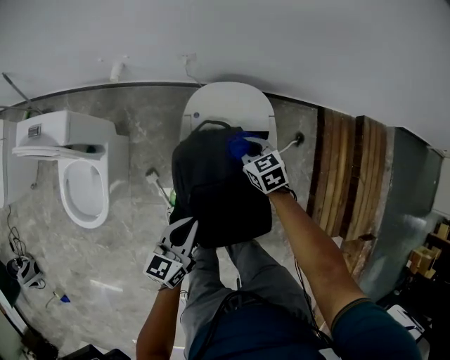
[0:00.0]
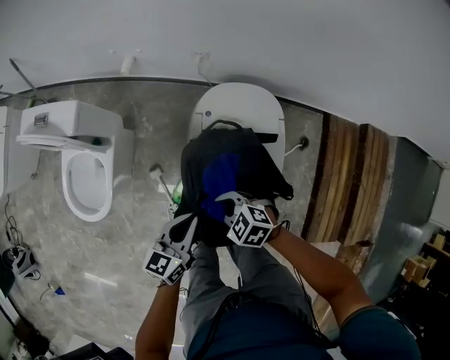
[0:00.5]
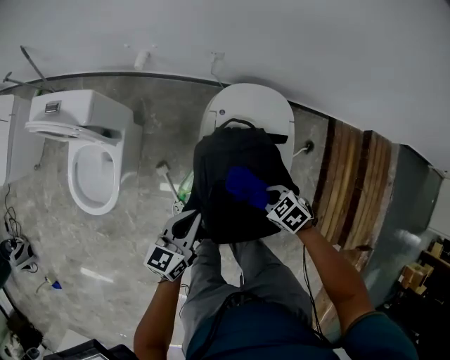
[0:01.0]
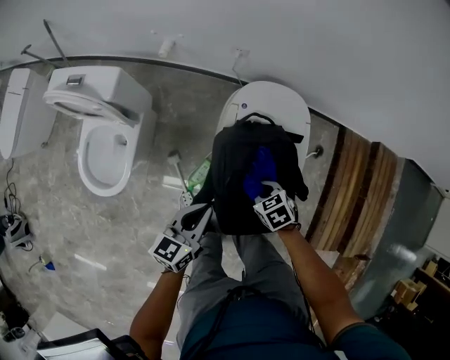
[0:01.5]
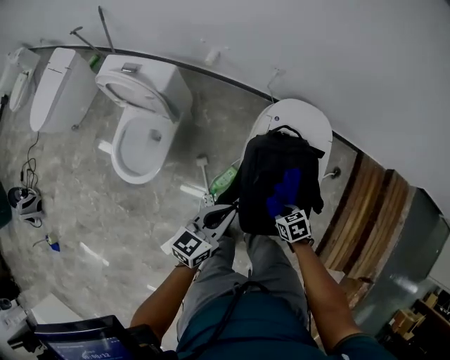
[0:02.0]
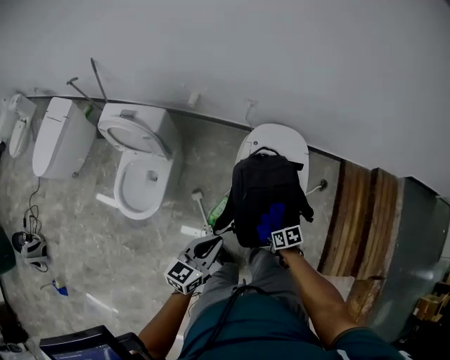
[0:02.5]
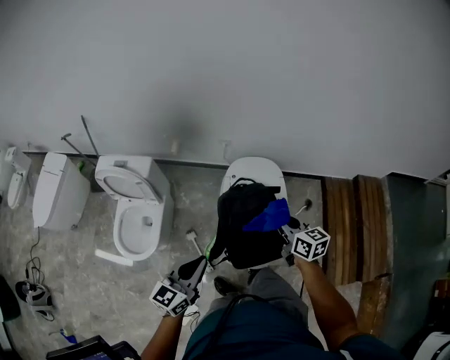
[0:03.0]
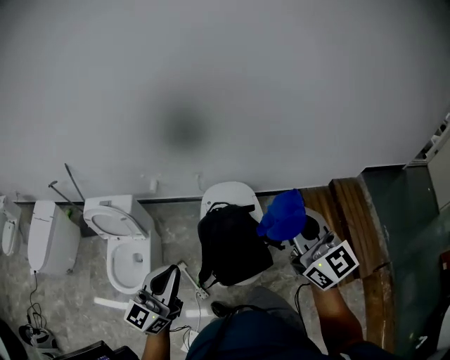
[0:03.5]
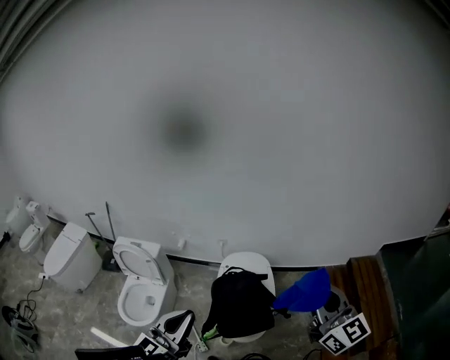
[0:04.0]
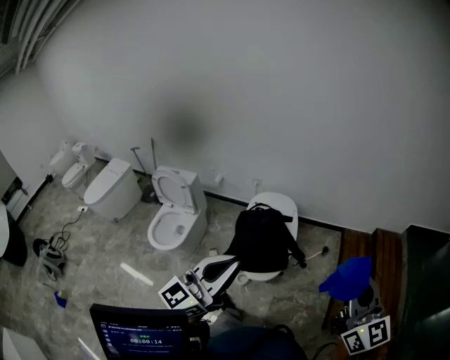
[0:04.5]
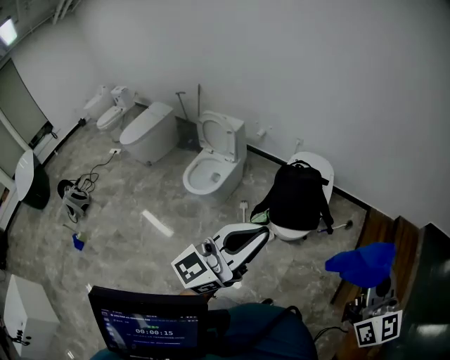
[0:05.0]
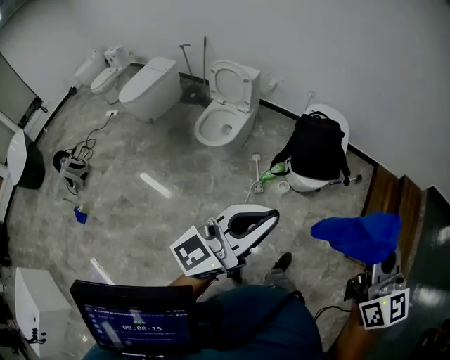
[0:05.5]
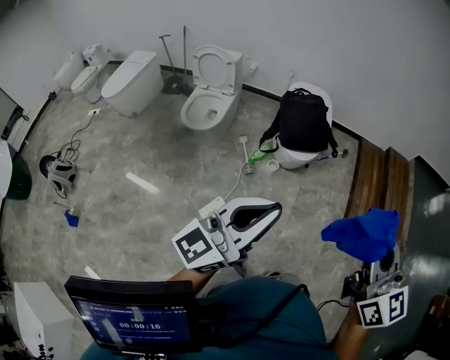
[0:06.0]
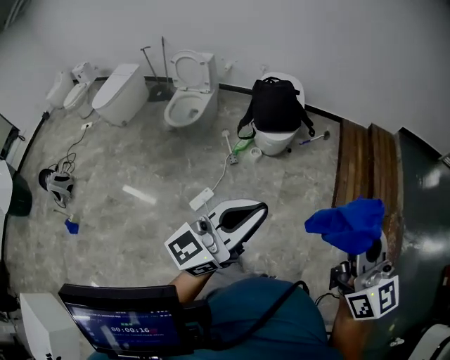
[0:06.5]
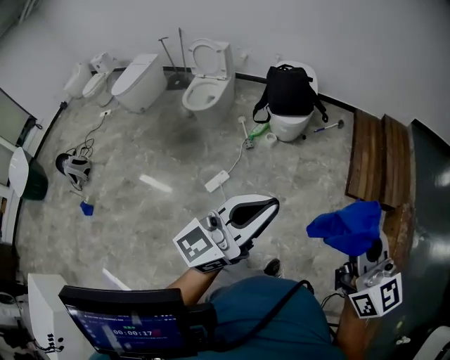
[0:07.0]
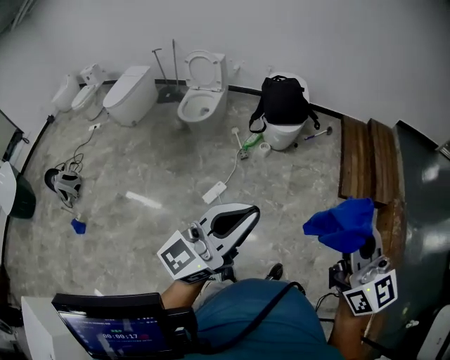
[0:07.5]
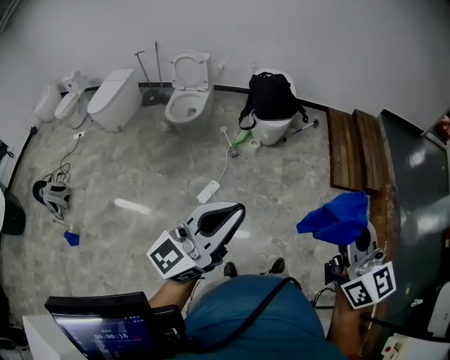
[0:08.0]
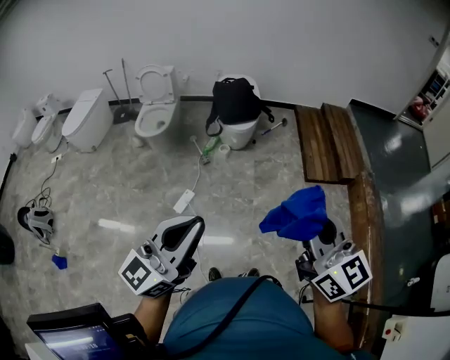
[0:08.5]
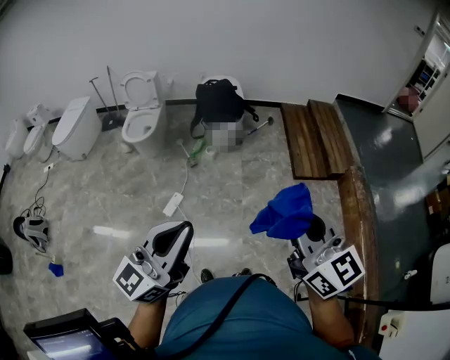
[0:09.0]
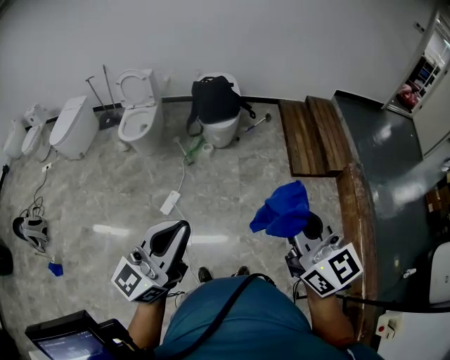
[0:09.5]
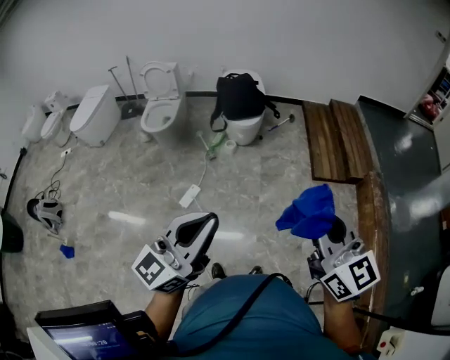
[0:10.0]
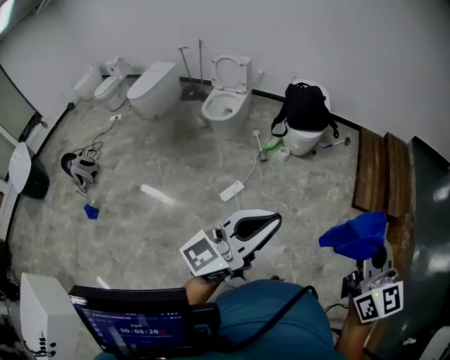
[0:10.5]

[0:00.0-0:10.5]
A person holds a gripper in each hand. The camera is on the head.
0:00.0 to 0:02.0: The right gripper ends up approximately 25 cm from where it was, and rotates roughly 20 degrees, while the left gripper shifts by approximately 10 cm.
0:02.0 to 0:04.0: The right gripper heads upward, covering some 60 cm, and tilts its fingers about 70 degrees upward; the left gripper moves upward, roughly 35 cm, and points its fingers roughly 30 degrees further upward.
0:04.0 to 0:06.5: The two grippers travel together, backward, approximately 60 cm.
0:06.5 to 0:08.5: Both grippers travel together backward, some 25 cm.
0:08.5 to 0:10.5: The left gripper ends up roughly 5 cm from where it was.

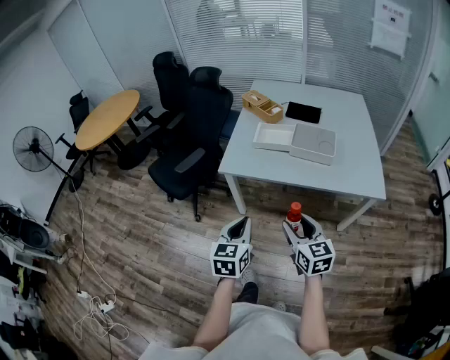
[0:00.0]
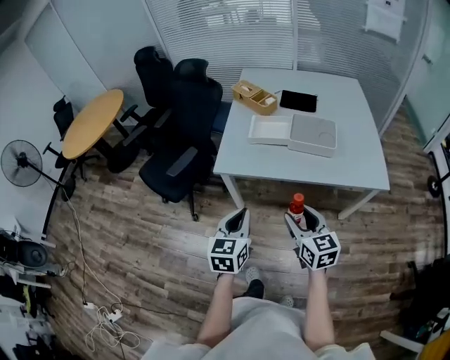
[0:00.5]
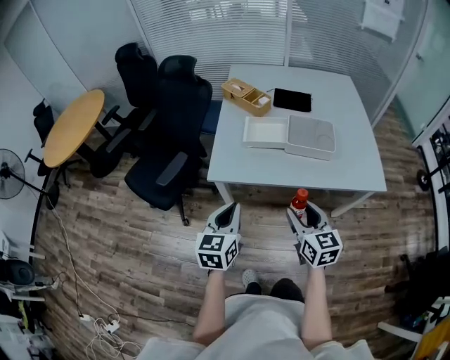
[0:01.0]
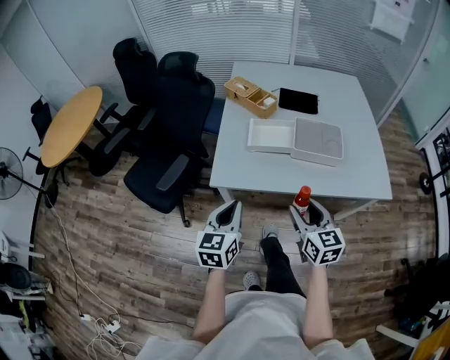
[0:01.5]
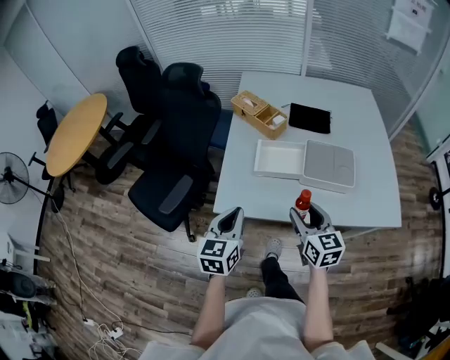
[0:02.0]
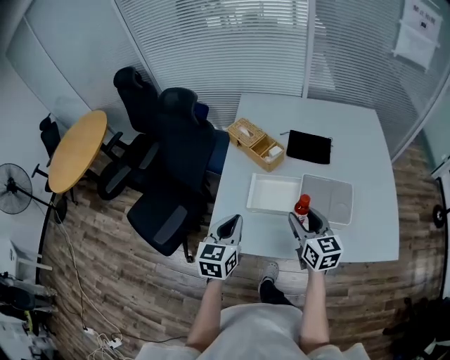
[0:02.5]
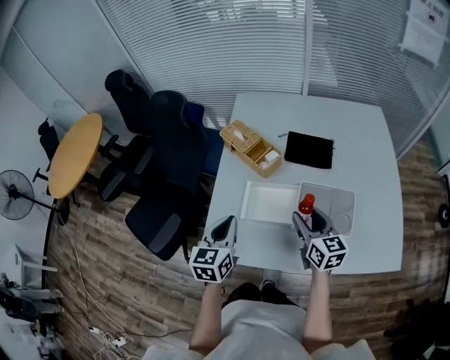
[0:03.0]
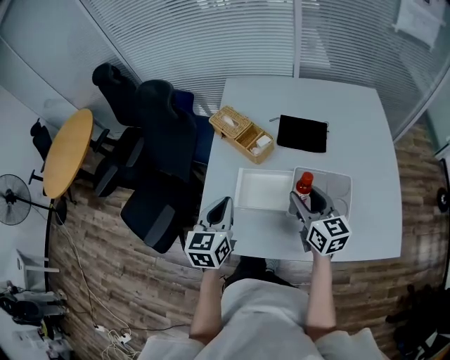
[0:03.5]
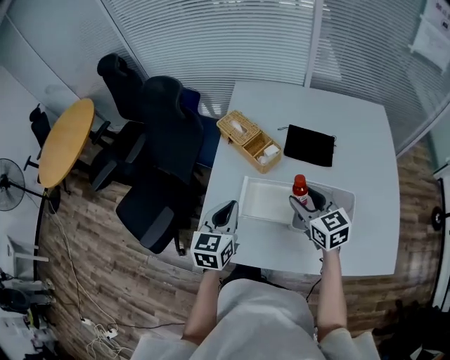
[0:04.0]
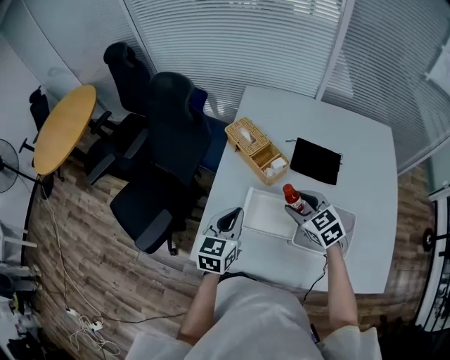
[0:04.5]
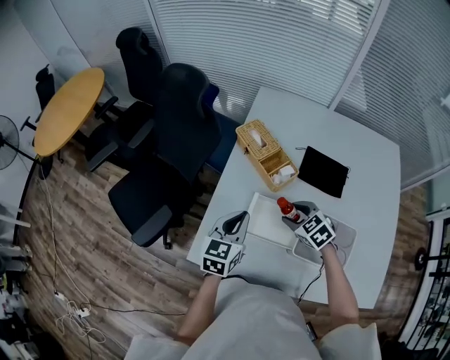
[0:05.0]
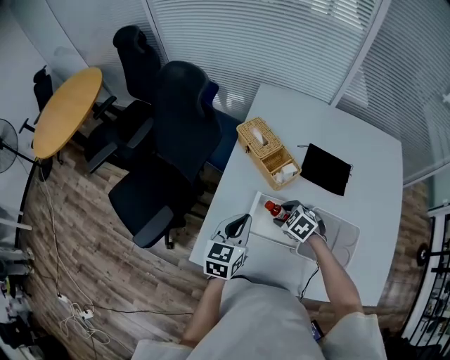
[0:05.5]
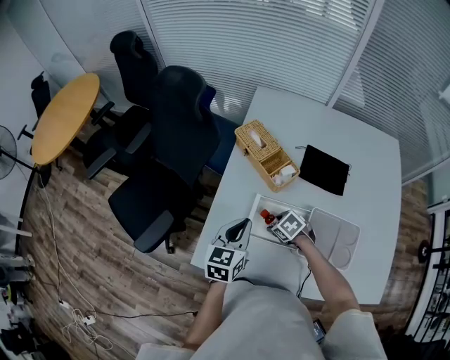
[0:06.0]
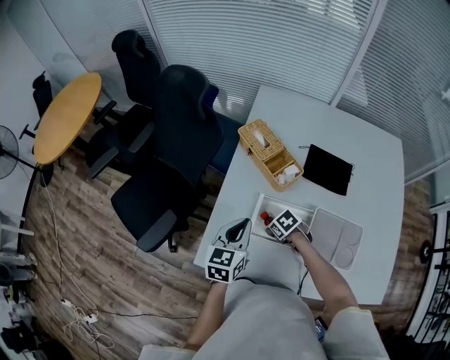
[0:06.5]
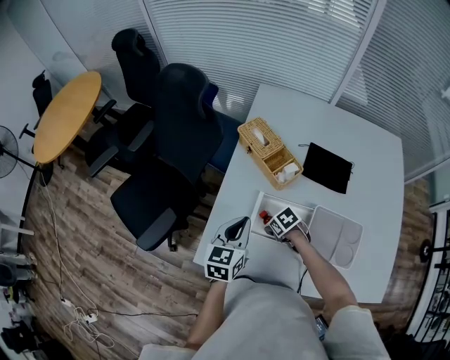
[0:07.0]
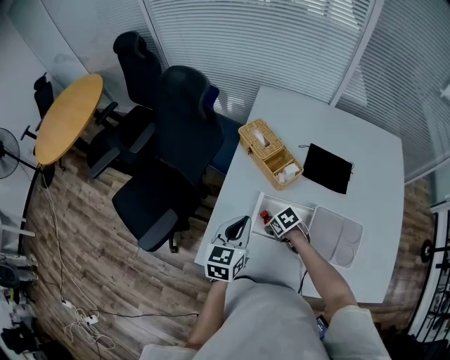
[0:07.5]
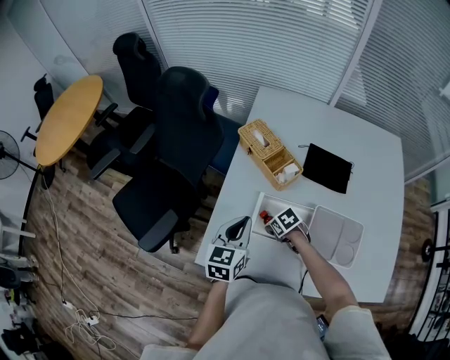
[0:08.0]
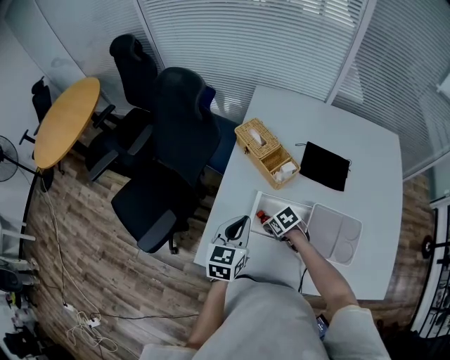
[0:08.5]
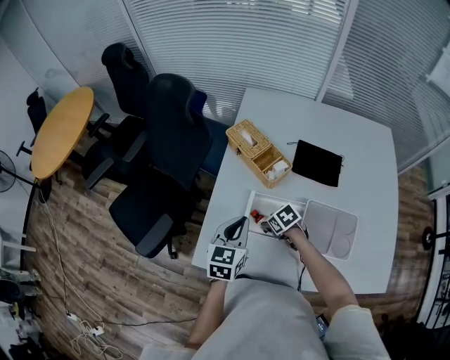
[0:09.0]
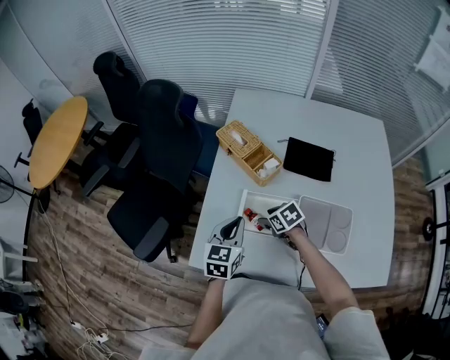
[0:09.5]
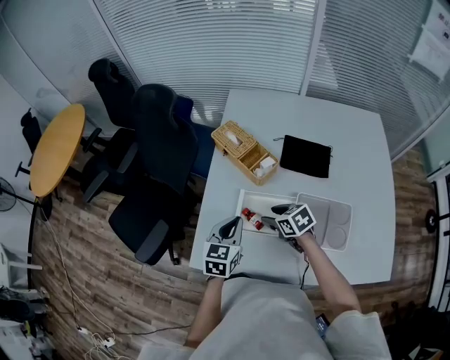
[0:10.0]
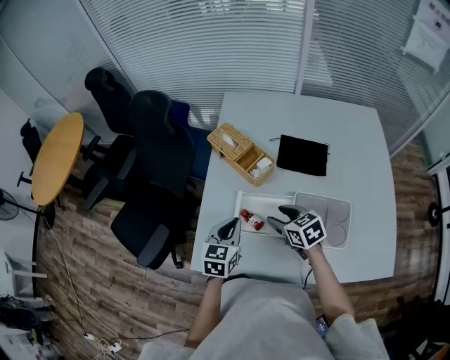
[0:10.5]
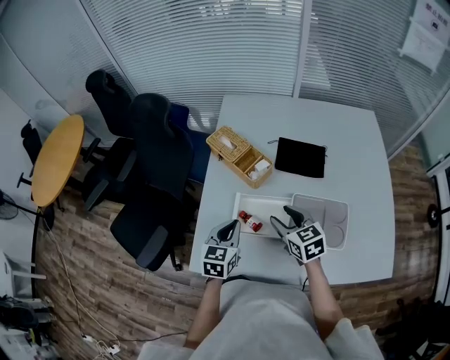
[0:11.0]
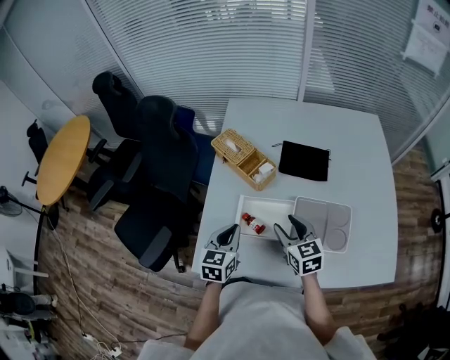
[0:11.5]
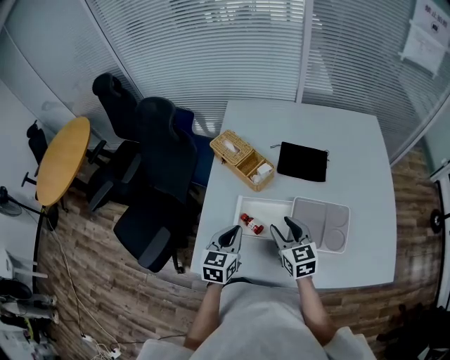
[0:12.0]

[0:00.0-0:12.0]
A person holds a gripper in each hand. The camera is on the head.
0:00.0 to 0:02.0: Both grippers move forward, roughly 30 cm.
0:02.0 to 0:04.0: Both grippers move forward, about 25 cm.
0:04.0 to 0:06.0: The right gripper shifts some 25 cm downward and to the left, and angles its fingers downward, by some 40 degrees; the left gripper moves downward, about 5 cm.
0:06.0 to 0:08.0: There are only small adjustments of the grippers.
0:08.0 to 0:10.0: The right gripper shifts approximately 10 cm upward, and rotates roughly 20 degrees.
0:10.0 to 0:12.0: The right gripper shifts approximately 10 cm upward, and changes its angle by some 40 degrees.

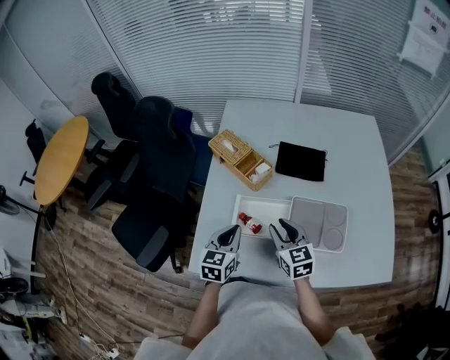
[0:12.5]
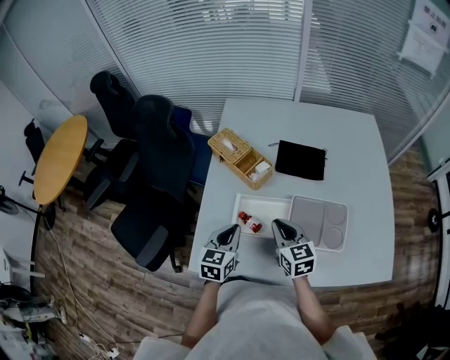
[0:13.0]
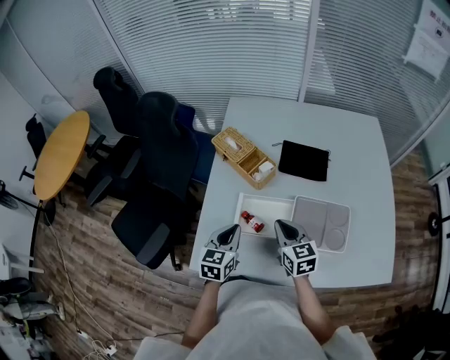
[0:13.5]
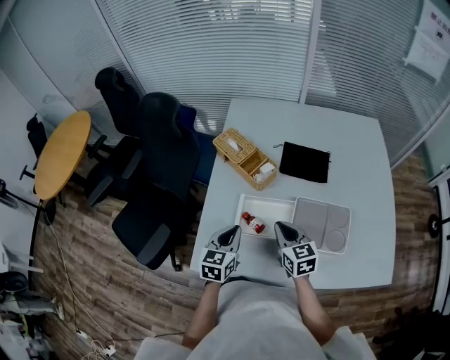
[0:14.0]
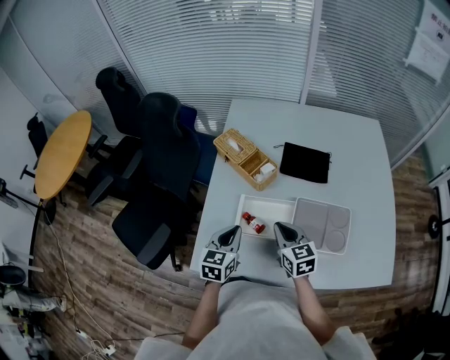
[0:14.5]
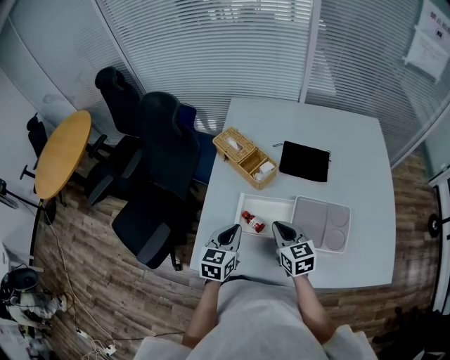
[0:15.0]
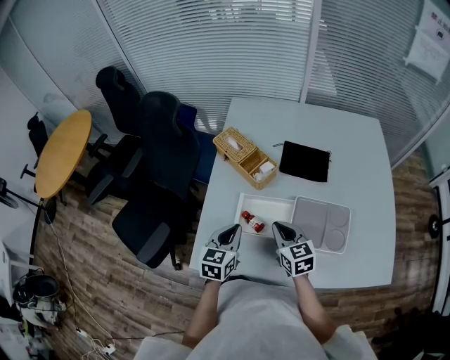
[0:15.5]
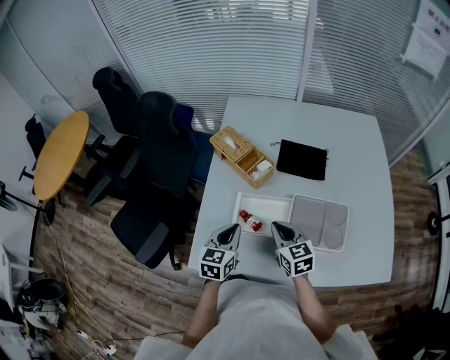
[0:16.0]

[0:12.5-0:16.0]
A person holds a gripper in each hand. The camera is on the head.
0:12.5 to 0:14.5: The right gripper closes up.
0:14.5 to 0:16.0: The two grippers keep their place.

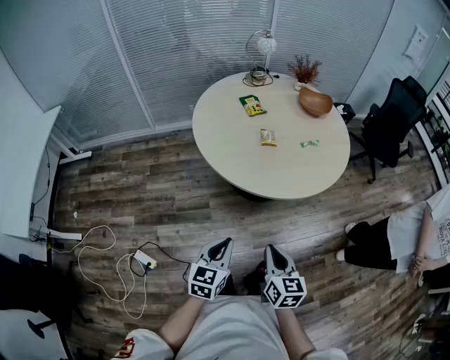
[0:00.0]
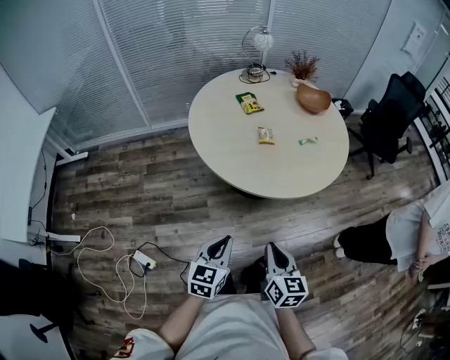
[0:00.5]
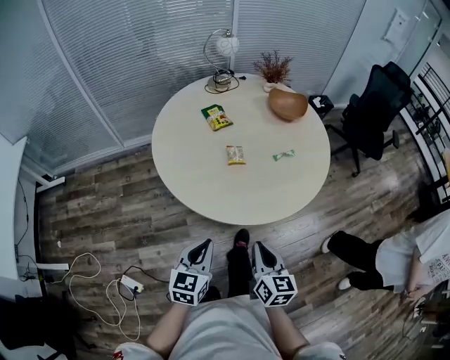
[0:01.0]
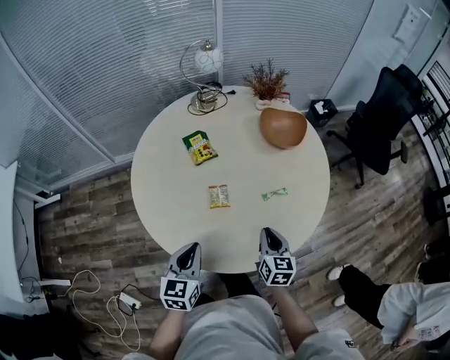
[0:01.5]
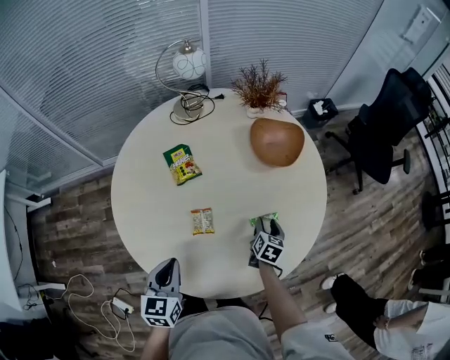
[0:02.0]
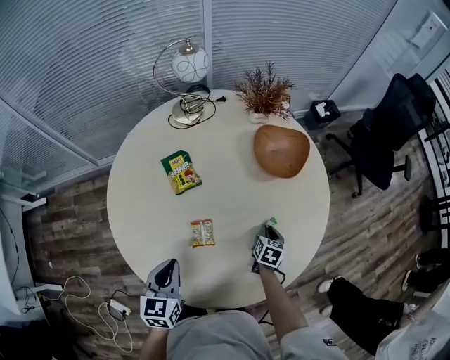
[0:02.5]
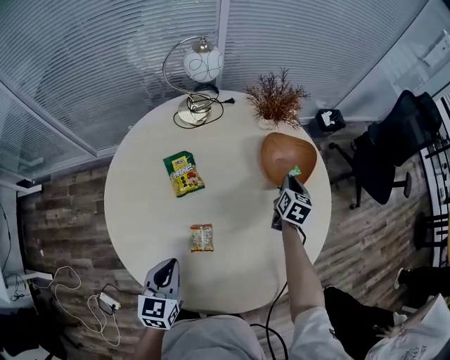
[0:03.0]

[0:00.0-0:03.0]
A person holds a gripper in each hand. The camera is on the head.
0:00.0 to 0:01.5: Both grippers move forward, some 35 cm.
0:01.5 to 0:03.0: The left gripper shifts approximately 15 cm forward. The right gripper travels forward by roughly 40 cm, and opens and closes again.
